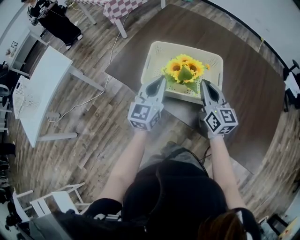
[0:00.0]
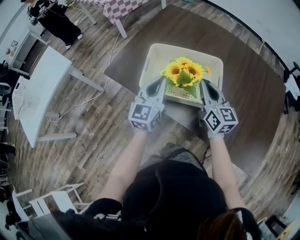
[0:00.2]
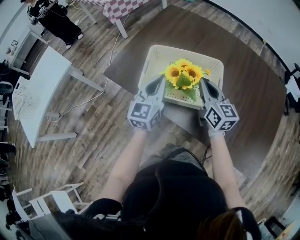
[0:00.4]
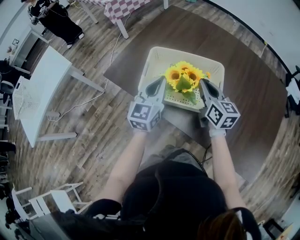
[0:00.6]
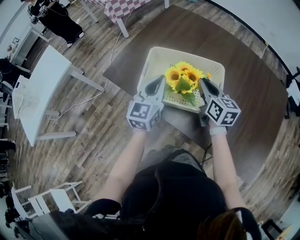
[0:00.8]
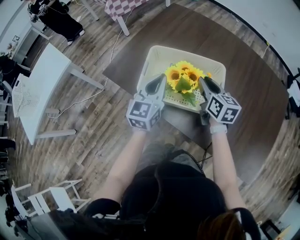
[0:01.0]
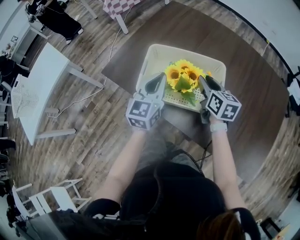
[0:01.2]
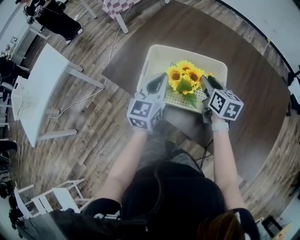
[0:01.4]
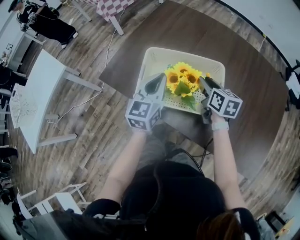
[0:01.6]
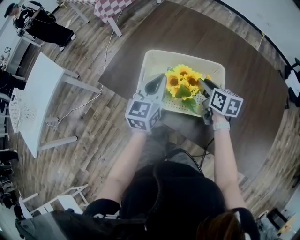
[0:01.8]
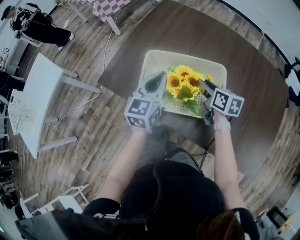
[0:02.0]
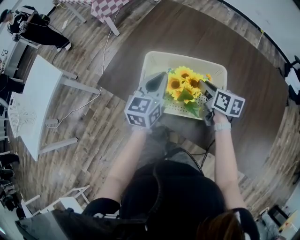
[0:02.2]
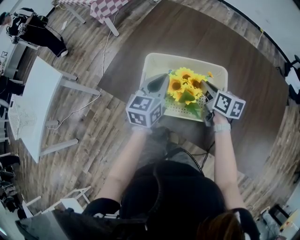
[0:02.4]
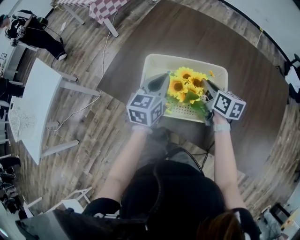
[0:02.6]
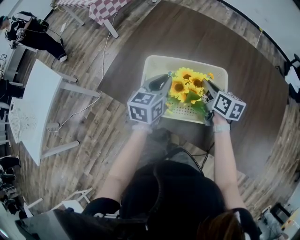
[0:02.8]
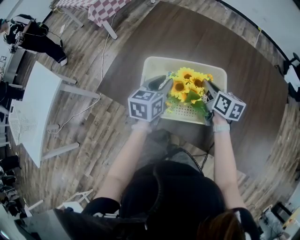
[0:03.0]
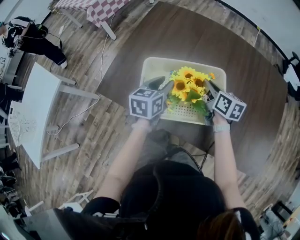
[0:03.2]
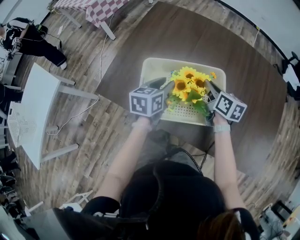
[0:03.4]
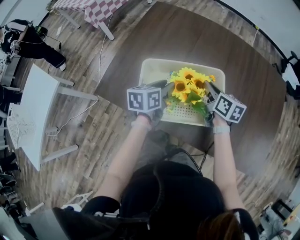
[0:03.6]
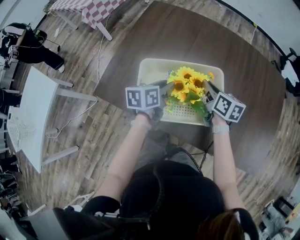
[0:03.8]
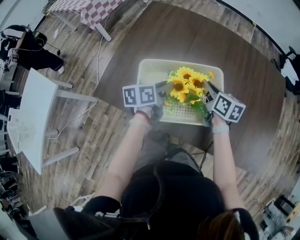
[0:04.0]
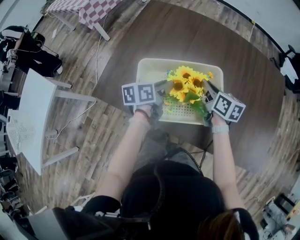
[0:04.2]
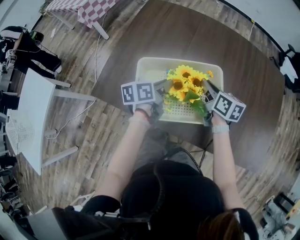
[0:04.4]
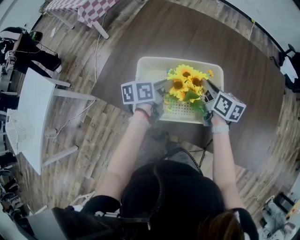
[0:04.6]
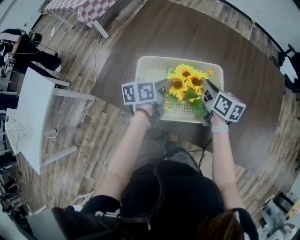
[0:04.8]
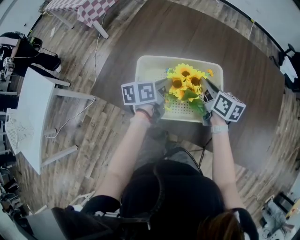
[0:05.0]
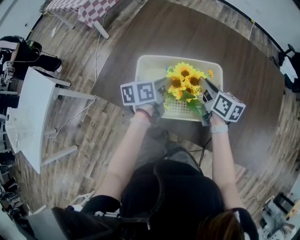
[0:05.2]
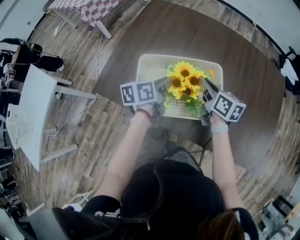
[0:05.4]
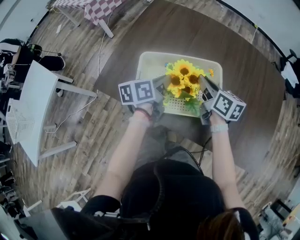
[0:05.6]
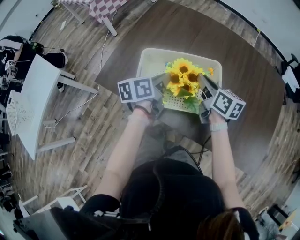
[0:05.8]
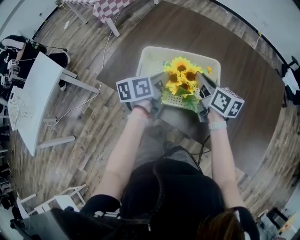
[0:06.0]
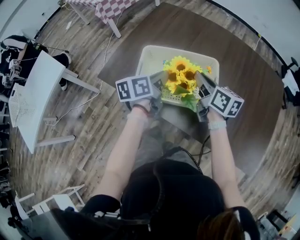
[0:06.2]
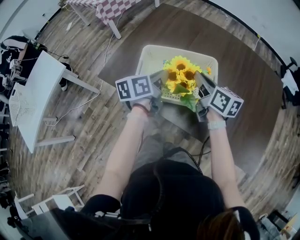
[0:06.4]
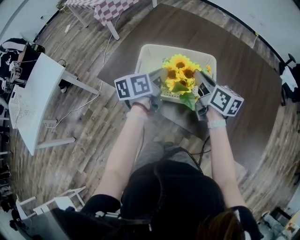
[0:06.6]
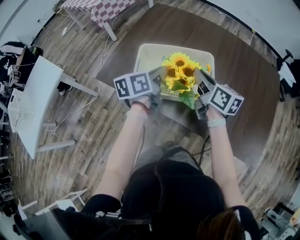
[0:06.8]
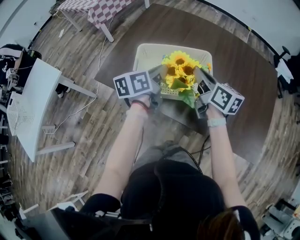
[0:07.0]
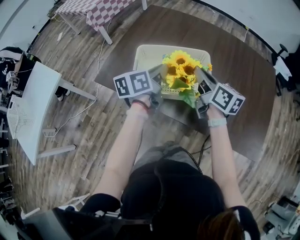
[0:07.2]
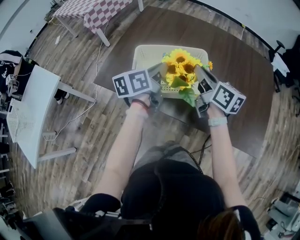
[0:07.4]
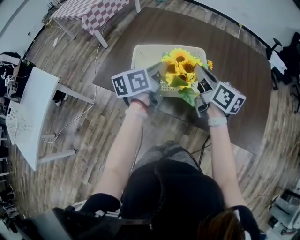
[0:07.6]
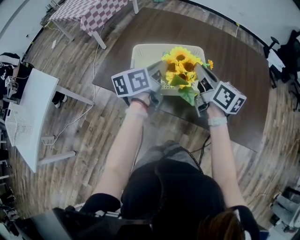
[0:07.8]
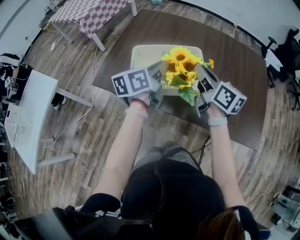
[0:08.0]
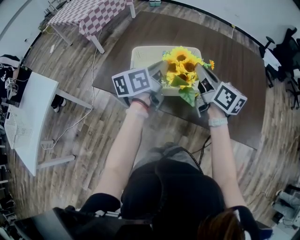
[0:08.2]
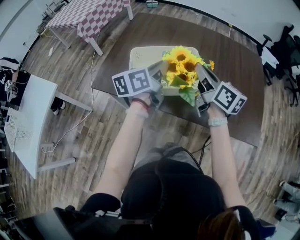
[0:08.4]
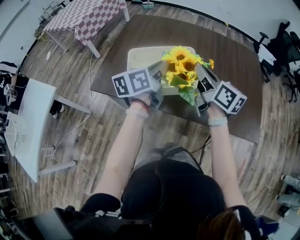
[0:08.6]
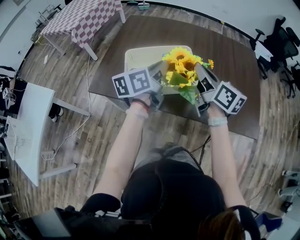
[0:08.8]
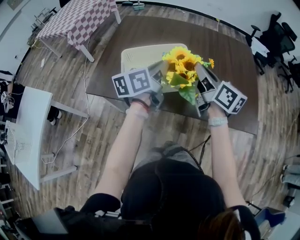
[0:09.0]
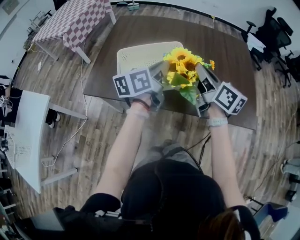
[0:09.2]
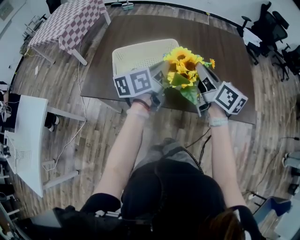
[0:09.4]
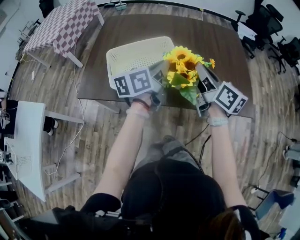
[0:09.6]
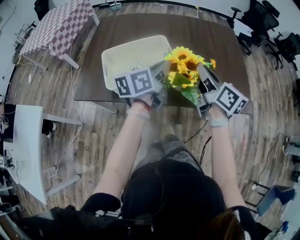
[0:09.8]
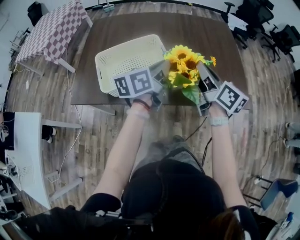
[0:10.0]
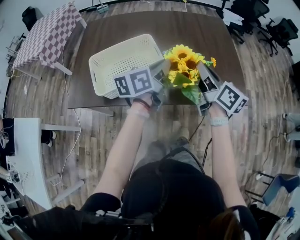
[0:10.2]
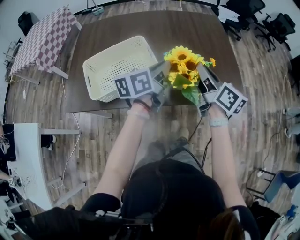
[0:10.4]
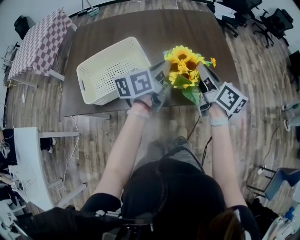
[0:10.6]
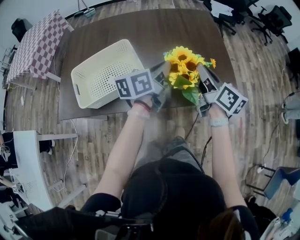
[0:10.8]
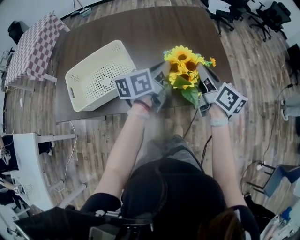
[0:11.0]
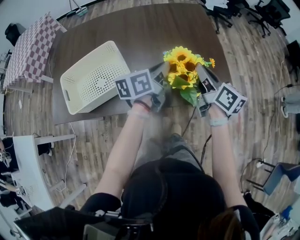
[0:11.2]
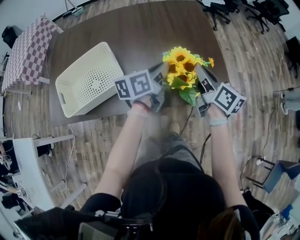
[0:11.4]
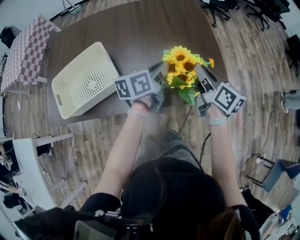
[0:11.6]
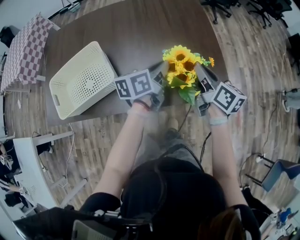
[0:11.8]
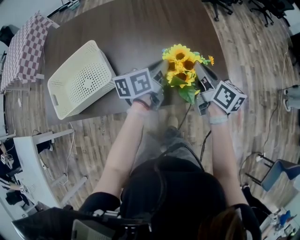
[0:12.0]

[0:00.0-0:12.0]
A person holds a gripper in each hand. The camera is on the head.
0:00.0 to 0:01.6: The right gripper travels forward and downward by some 10 cm, rotates about 30 degrees, and opens, while the left gripper goes about 5 cm forward.
0:01.6 to 0:03.0: The right gripper closes up, while the left gripper moves downward, roughly 5 cm, swivels about 20 degrees, and opens.
0:03.0 to 0:04.4: The left gripper changes place by roughly 5 cm, and turns by about 40 degrees.
0:04.4 to 0:06.0: Both grippers move upward, approximately 5 cm.
0:06.0 to 0:07.6: The right gripper goes some 10 cm upward and backward; the left gripper is displaced upward by some 5 cm.
0:07.6 to 0:09.0: The left gripper shifts roughly 5 cm to the right. Meanwhile the right gripper heads to the right and backward, covering some 10 cm.
0:09.0 to 0:10.4: The grippers both shift to the right by some 15 cm.
0:10.4 to 0:12.0: The two grippers go about 20 cm to the right, downward and forward.

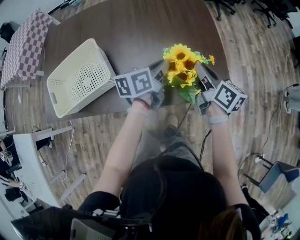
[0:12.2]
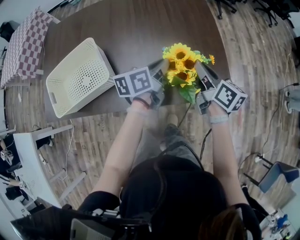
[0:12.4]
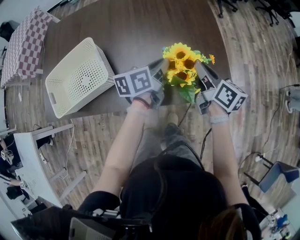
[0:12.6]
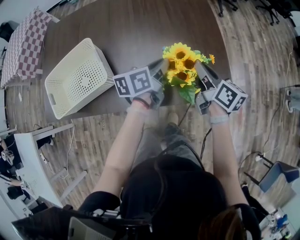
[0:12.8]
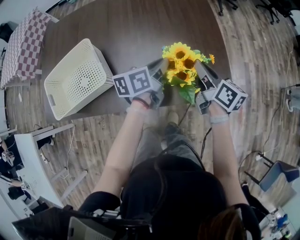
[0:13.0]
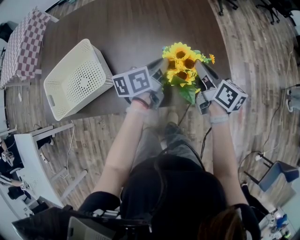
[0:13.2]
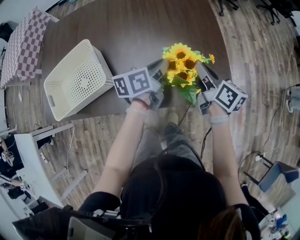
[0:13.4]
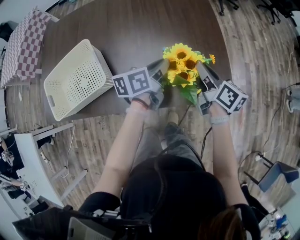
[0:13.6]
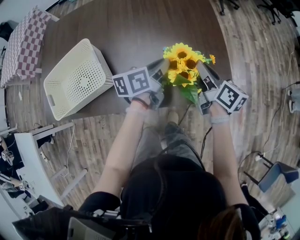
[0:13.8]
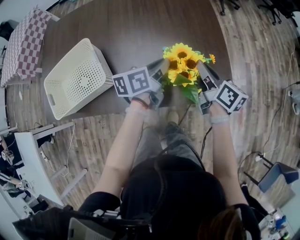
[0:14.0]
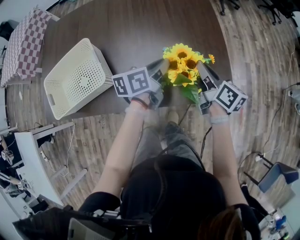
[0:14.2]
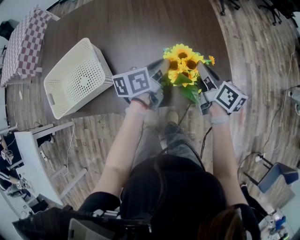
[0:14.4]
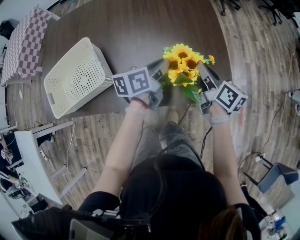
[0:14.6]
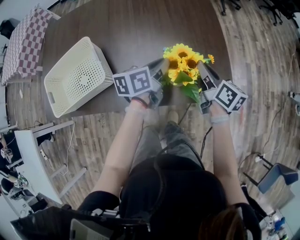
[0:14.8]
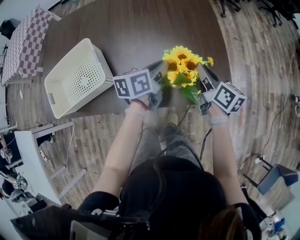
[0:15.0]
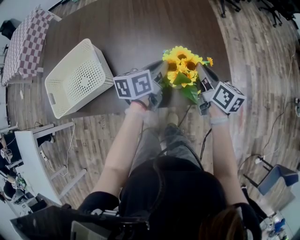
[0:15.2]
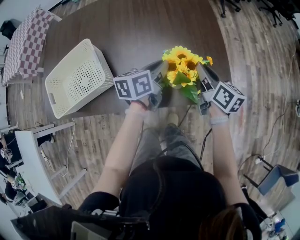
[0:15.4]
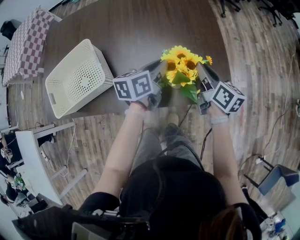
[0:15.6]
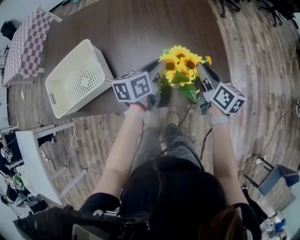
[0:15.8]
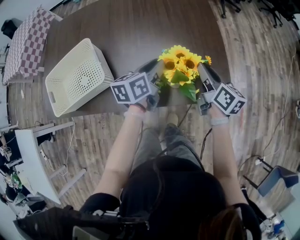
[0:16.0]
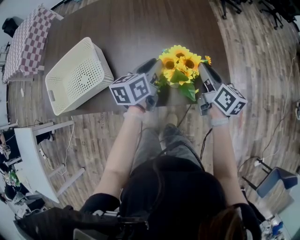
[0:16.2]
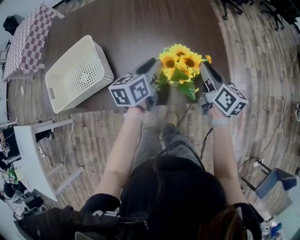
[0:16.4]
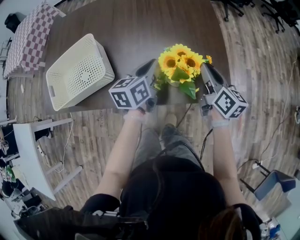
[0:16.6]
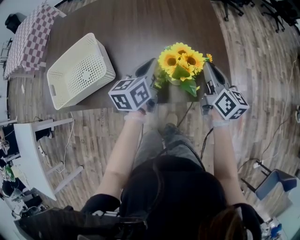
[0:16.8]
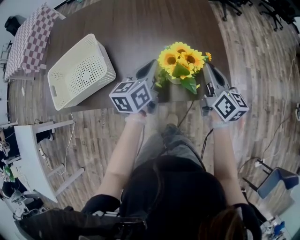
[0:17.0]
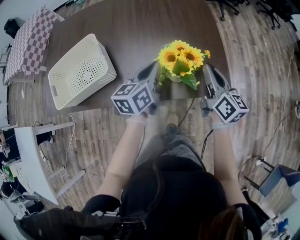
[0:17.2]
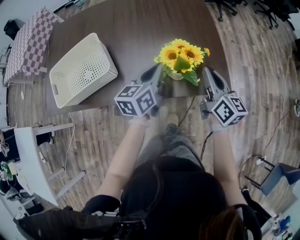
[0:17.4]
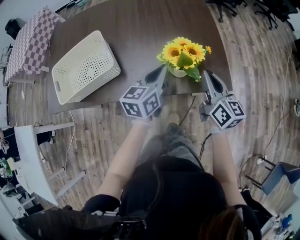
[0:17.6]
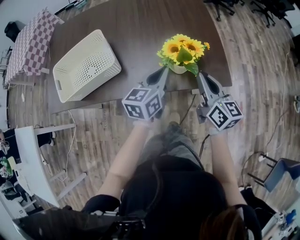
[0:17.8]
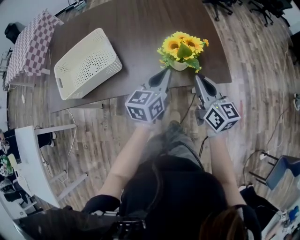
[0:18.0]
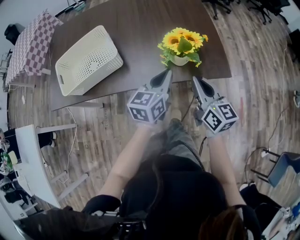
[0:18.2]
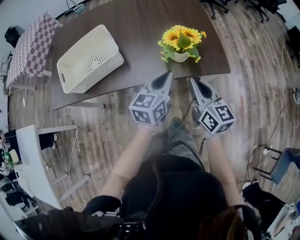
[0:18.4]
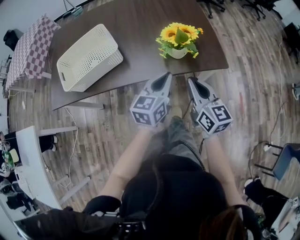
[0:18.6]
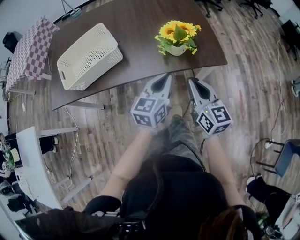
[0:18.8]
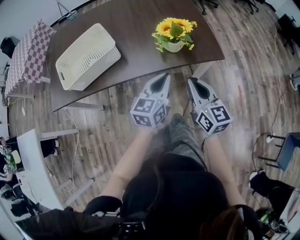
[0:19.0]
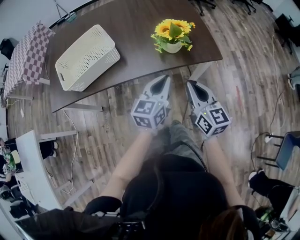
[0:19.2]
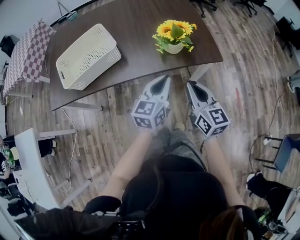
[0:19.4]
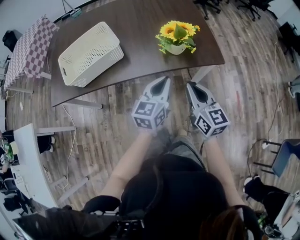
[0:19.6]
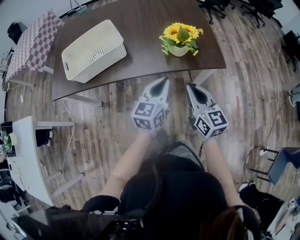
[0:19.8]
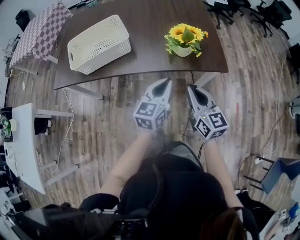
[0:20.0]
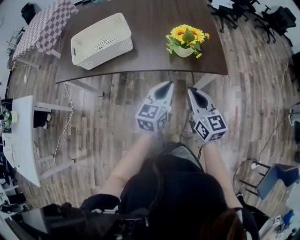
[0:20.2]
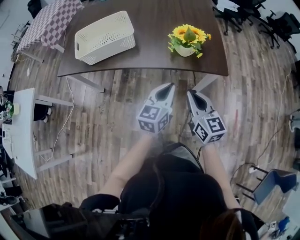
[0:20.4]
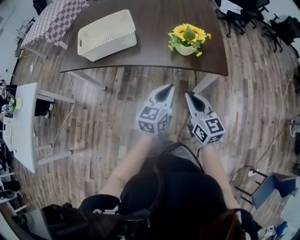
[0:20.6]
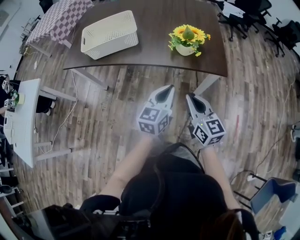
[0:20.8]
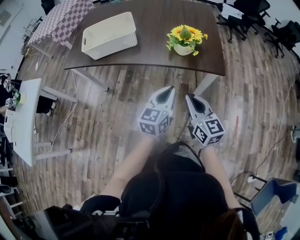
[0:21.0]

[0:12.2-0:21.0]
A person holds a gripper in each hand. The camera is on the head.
0:12.2 to 0:16.6: The grippers move only a little.
0:16.6 to 0:18.0: The two grippers go approximately 15 cm backward.
0:18.0 to 0:19.6: Both grippers travel together backward, about 15 cm.
0:19.6 to 0:21.0: The right gripper goes about 10 cm backward; the left gripper moves backward and to the right, approximately 10 cm.

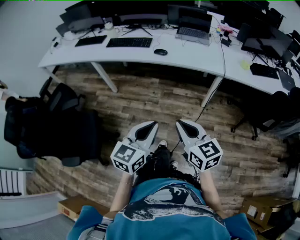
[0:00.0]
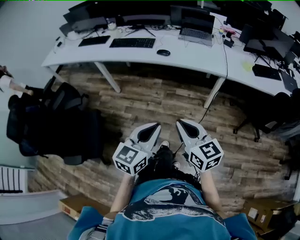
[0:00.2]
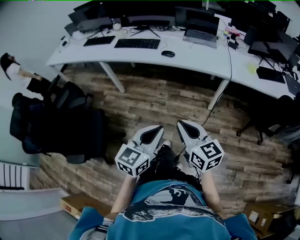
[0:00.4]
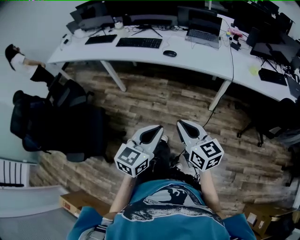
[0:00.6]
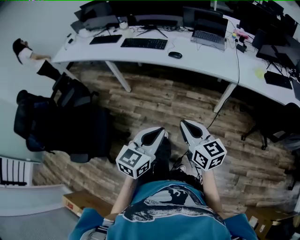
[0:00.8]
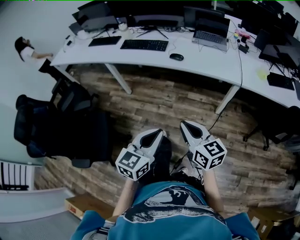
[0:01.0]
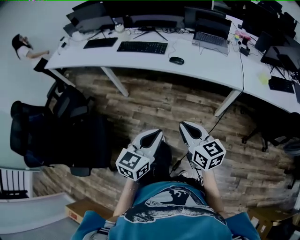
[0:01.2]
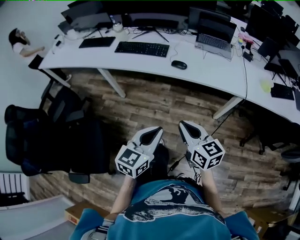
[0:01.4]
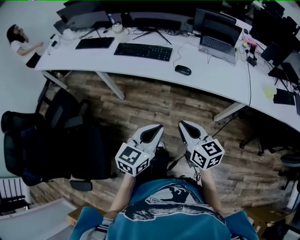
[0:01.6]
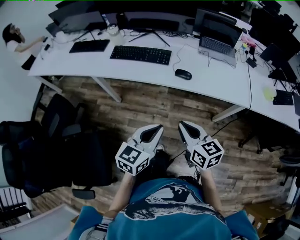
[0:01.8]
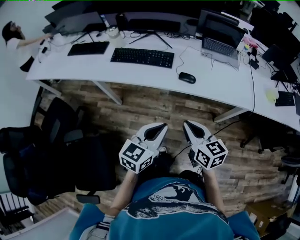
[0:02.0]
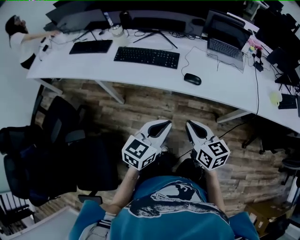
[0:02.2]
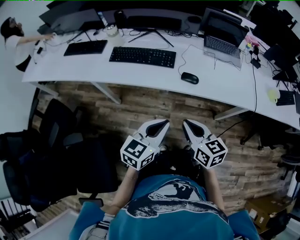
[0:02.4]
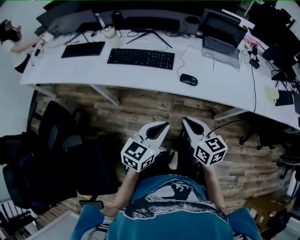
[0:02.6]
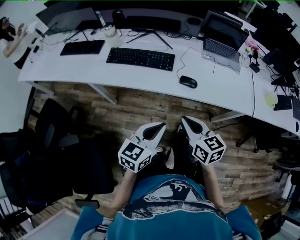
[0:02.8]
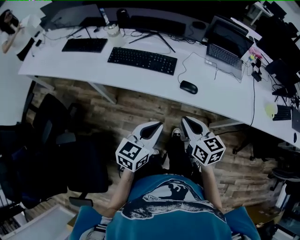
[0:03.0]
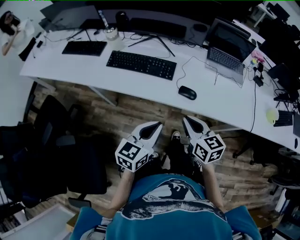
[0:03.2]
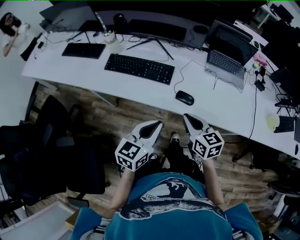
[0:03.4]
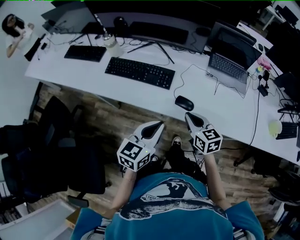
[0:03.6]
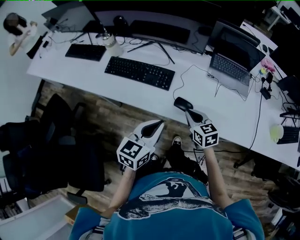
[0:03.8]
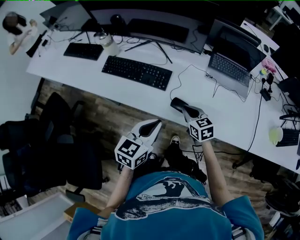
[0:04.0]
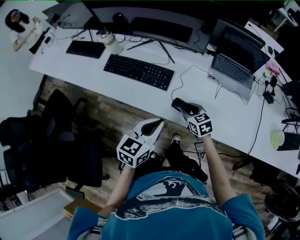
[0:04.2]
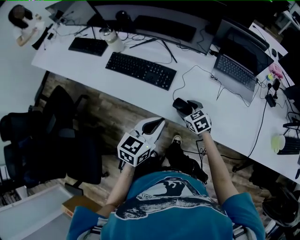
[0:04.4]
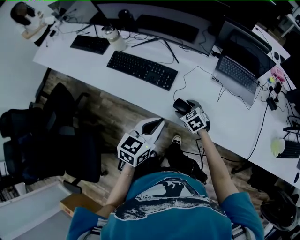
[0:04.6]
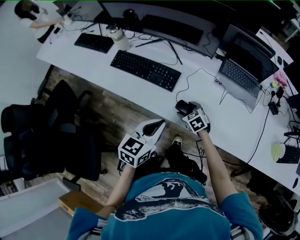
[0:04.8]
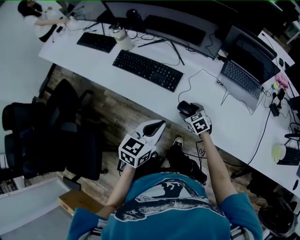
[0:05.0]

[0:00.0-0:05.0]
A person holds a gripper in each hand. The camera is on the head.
0:00.0 to 0:01.6: Both grippers travel together forward and to the left, about 25 cm.
0:01.6 to 0:03.4: Both grippers move forward, roughly 25 cm.
0:03.4 to 0:05.0: The left gripper heads forward and to the right, covering roughly 10 cm. The right gripper travels downward and forward by approximately 25 cm, rotates roughly 40 degrees, and opens up.
